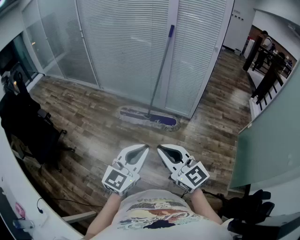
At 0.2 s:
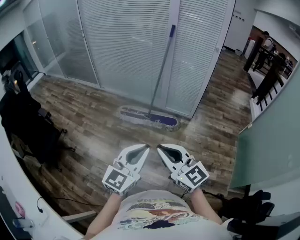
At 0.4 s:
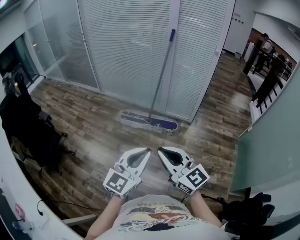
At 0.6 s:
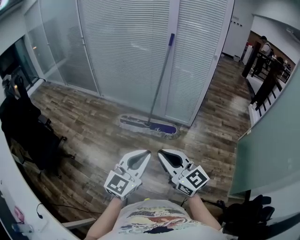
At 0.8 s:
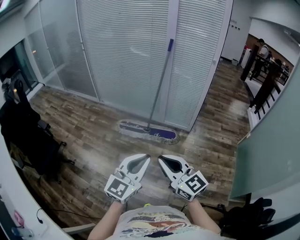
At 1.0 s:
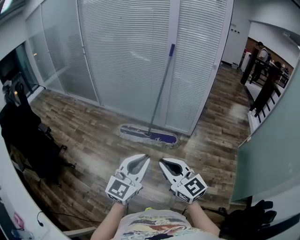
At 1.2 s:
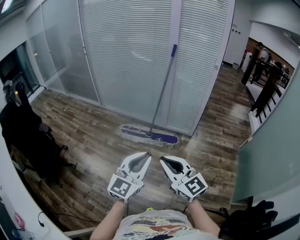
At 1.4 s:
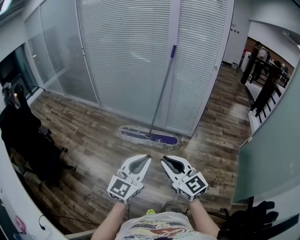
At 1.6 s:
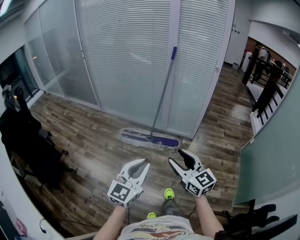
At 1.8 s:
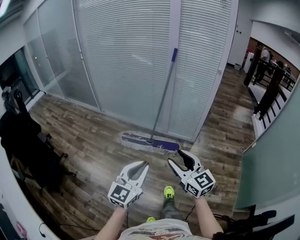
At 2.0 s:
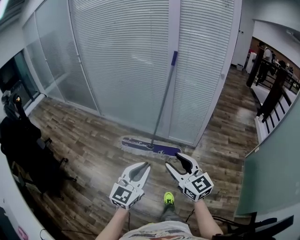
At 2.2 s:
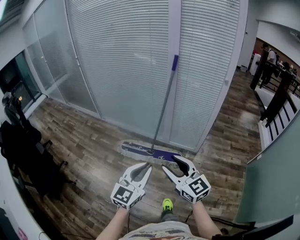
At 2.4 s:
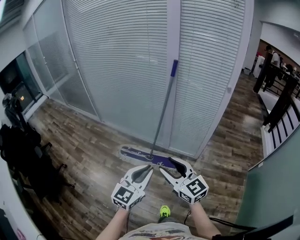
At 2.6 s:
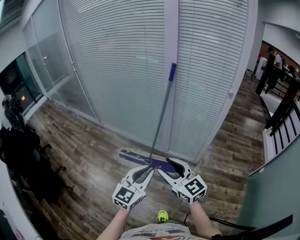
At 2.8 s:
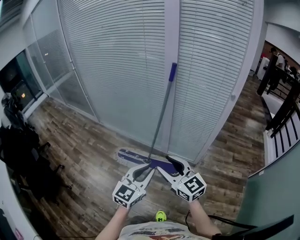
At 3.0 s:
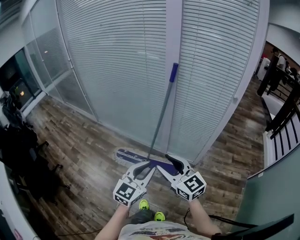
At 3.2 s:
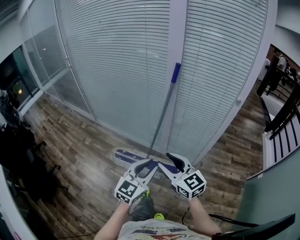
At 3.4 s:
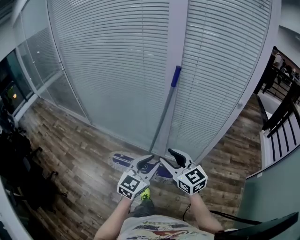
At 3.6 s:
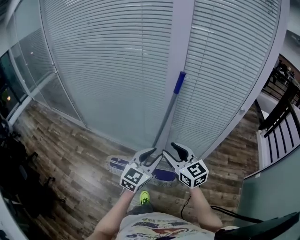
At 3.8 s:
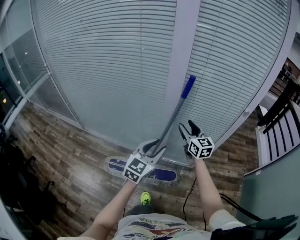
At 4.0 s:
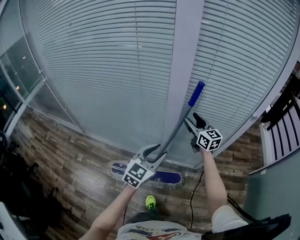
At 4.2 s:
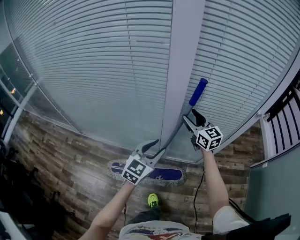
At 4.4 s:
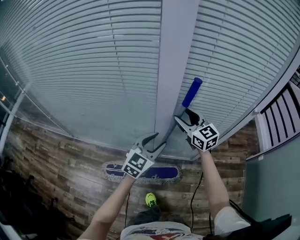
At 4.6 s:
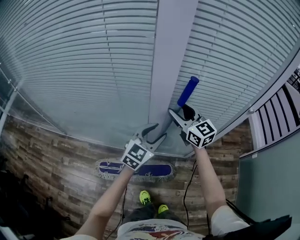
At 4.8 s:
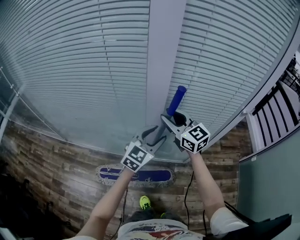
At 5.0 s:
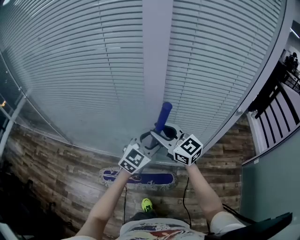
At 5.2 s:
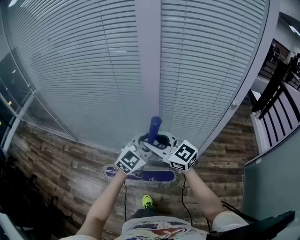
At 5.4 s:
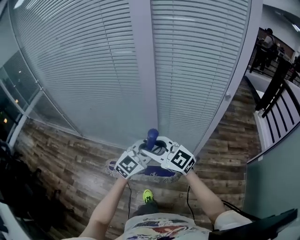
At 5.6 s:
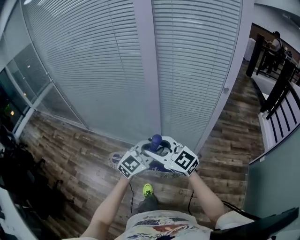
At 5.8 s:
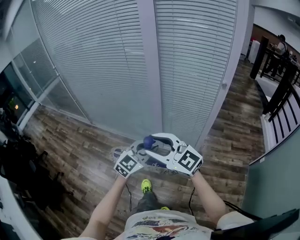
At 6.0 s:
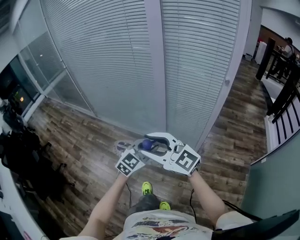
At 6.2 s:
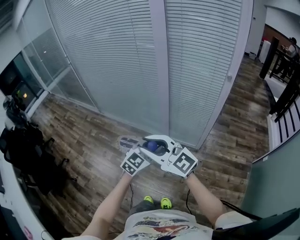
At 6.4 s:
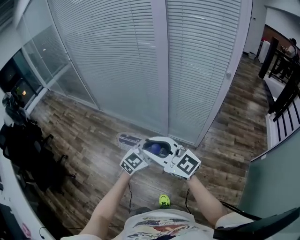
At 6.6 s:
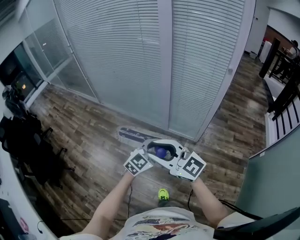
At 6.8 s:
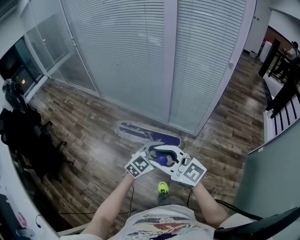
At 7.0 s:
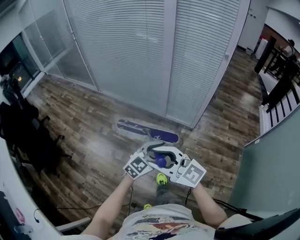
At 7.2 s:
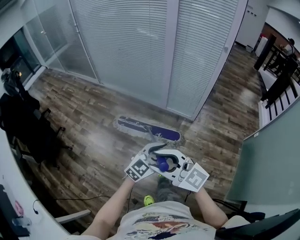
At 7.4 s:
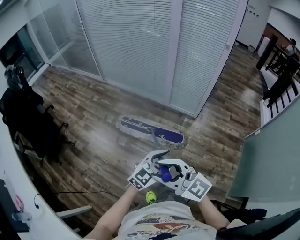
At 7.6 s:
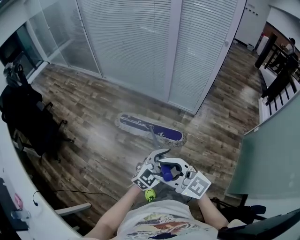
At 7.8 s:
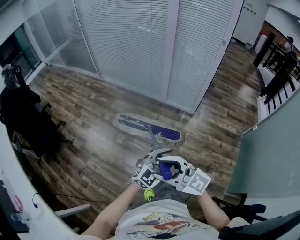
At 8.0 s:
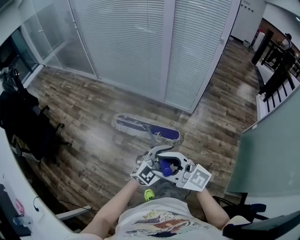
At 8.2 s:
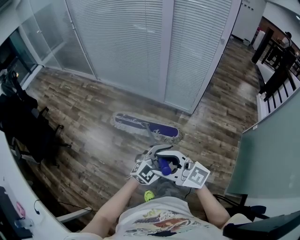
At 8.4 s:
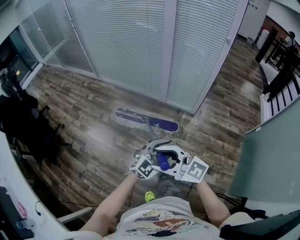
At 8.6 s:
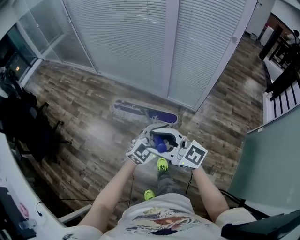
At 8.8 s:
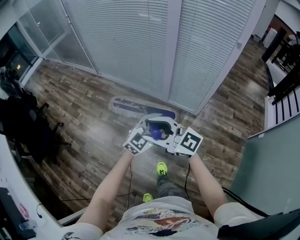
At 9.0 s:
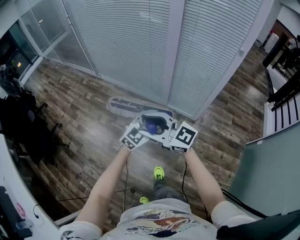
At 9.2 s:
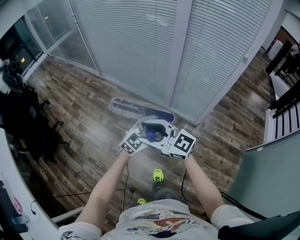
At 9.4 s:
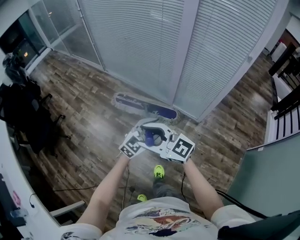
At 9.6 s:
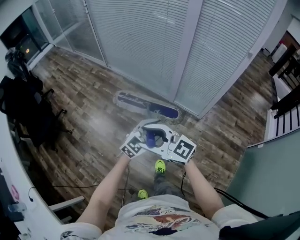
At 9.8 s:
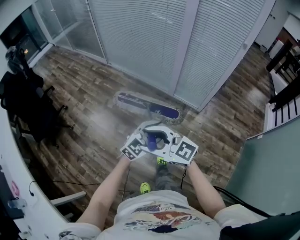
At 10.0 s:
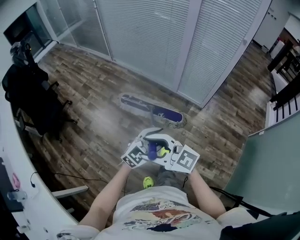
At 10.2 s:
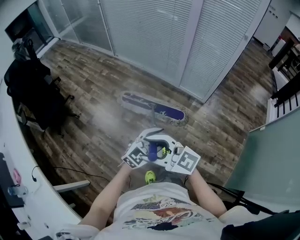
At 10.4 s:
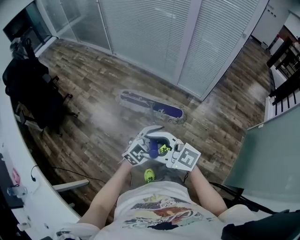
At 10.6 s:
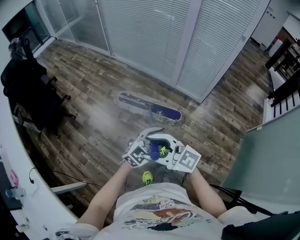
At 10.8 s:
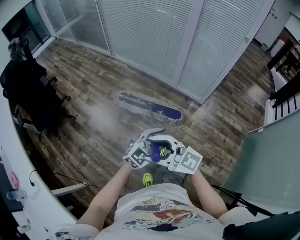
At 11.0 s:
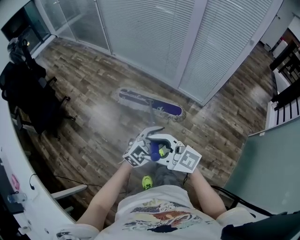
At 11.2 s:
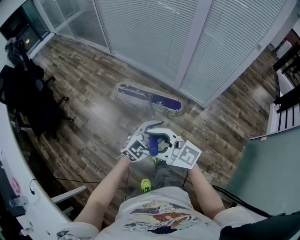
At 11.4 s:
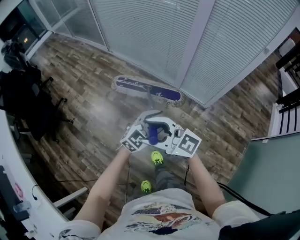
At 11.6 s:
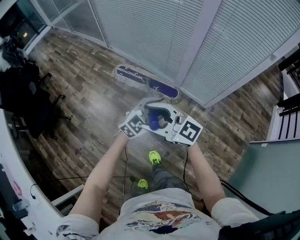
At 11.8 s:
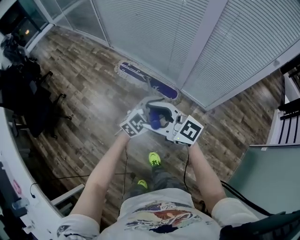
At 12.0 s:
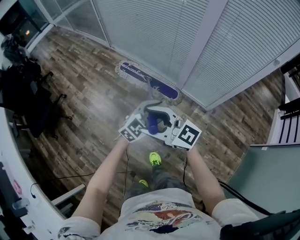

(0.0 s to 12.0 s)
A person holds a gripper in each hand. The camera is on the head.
0.0 s - 1.6 s: Both grippers move forward, roughly 10 cm. The right gripper opens up.
1.6 s - 3.0 s: The two grippers travel together, forward, roughly 50 cm.
3.0 s - 4.4 s: The pair of grippers is taken forward, some 50 cm. The right gripper changes its angle by about 20 degrees; the left gripper changes its angle by approximately 20 degrees, and opens its fingers.
4.4 s - 6.0 s: Both grippers are carried about 50 cm. The right gripper turns by about 50 degrees.
6.0 s - 7.6 s: Both grippers are carried backward, roughly 50 cm. The left gripper opens.
7.6 s - 9.0 s: The pair of grippers is taken some 40 cm.
9.0 s - 10.4 s: Both grippers are carried approximately 40 cm.
10.4 s - 12.0 s: Both grippers are carried about 50 cm.

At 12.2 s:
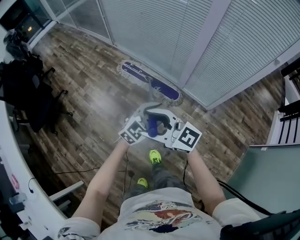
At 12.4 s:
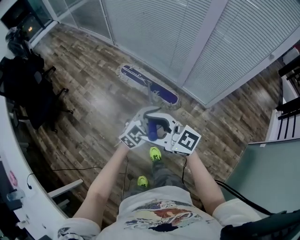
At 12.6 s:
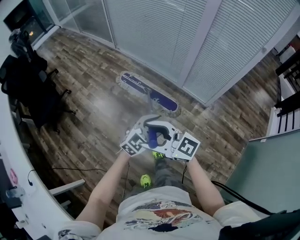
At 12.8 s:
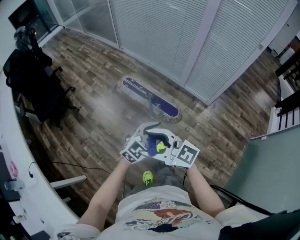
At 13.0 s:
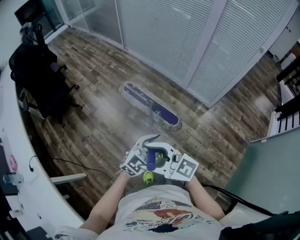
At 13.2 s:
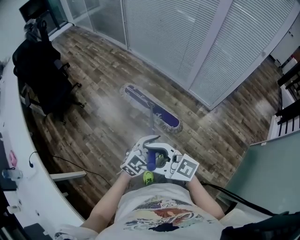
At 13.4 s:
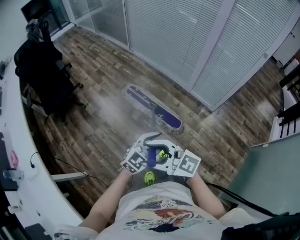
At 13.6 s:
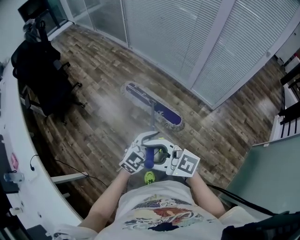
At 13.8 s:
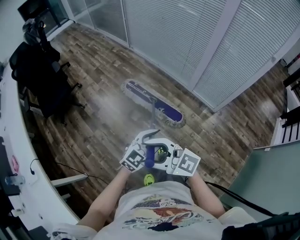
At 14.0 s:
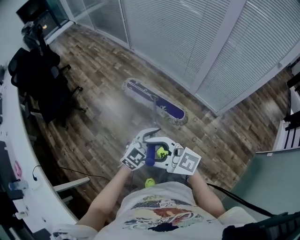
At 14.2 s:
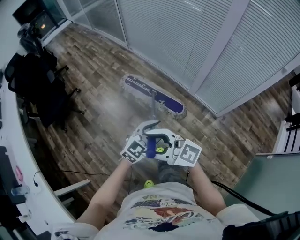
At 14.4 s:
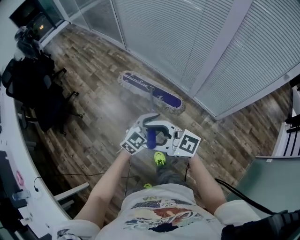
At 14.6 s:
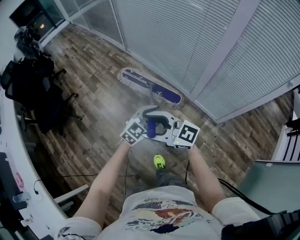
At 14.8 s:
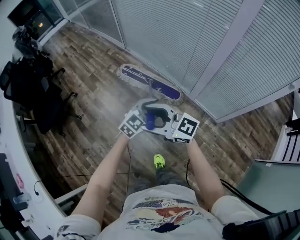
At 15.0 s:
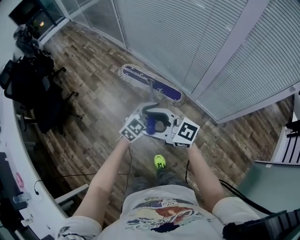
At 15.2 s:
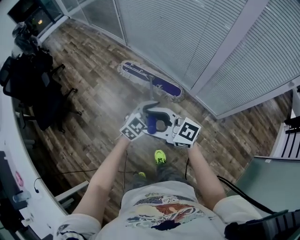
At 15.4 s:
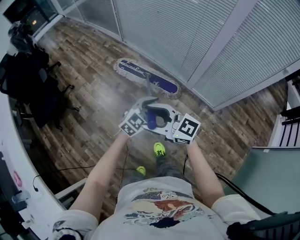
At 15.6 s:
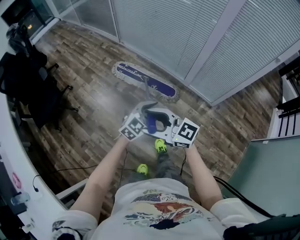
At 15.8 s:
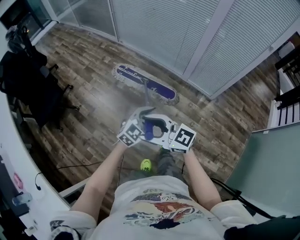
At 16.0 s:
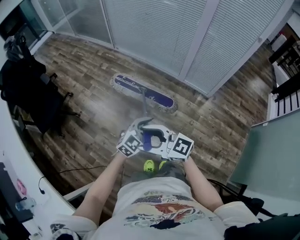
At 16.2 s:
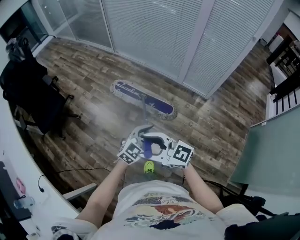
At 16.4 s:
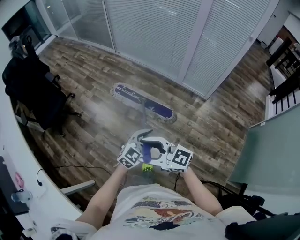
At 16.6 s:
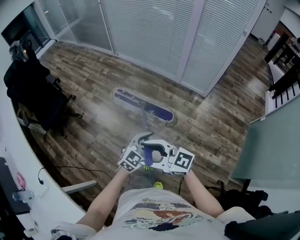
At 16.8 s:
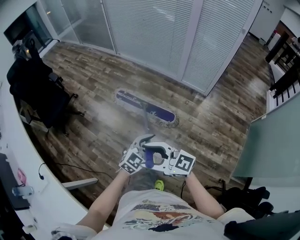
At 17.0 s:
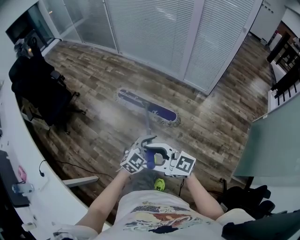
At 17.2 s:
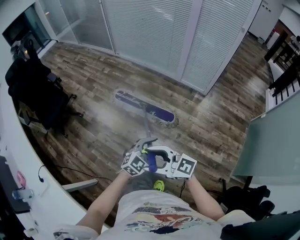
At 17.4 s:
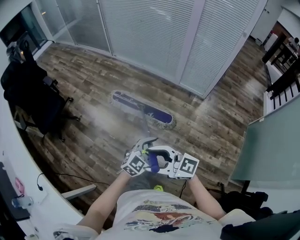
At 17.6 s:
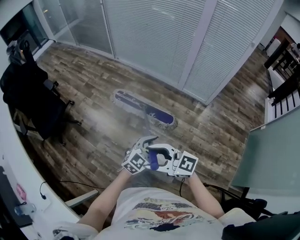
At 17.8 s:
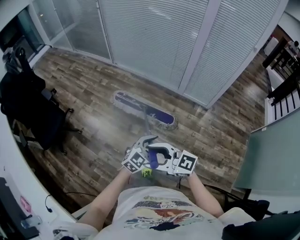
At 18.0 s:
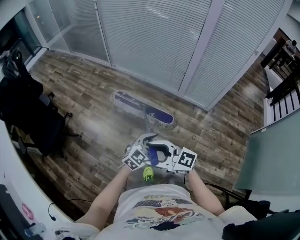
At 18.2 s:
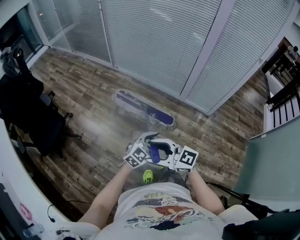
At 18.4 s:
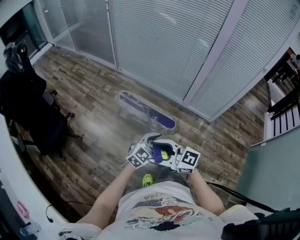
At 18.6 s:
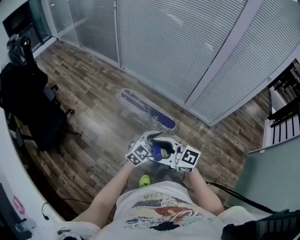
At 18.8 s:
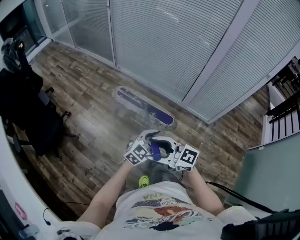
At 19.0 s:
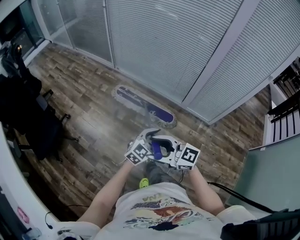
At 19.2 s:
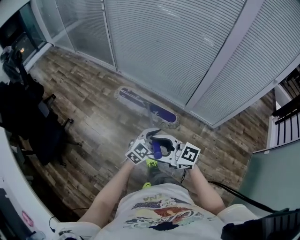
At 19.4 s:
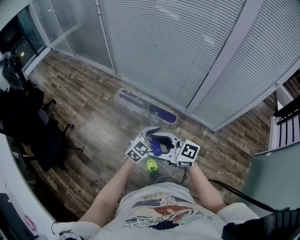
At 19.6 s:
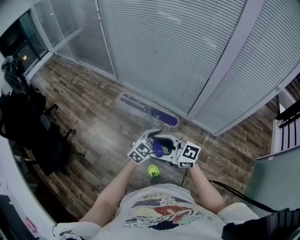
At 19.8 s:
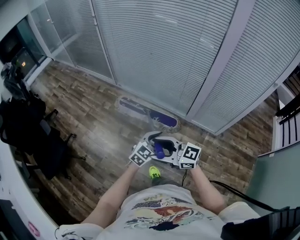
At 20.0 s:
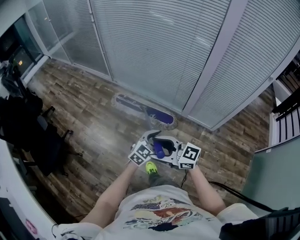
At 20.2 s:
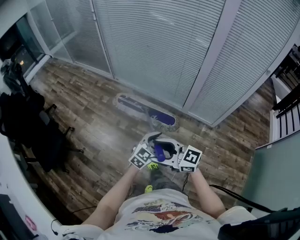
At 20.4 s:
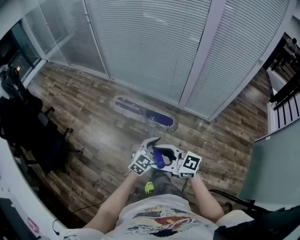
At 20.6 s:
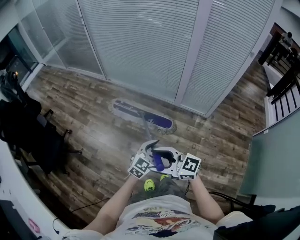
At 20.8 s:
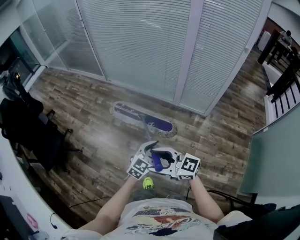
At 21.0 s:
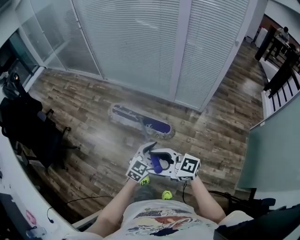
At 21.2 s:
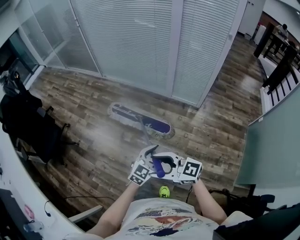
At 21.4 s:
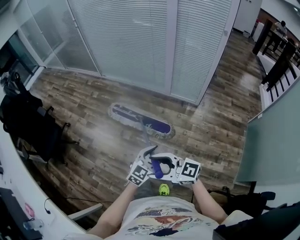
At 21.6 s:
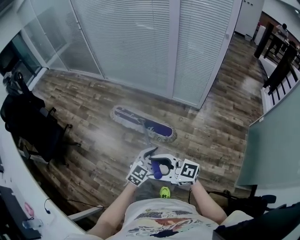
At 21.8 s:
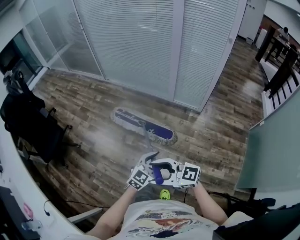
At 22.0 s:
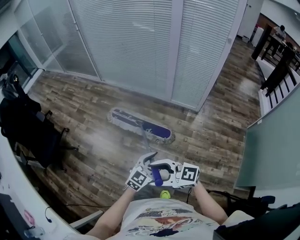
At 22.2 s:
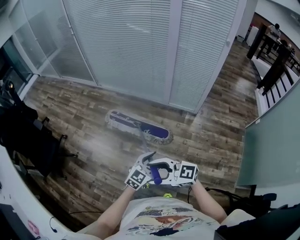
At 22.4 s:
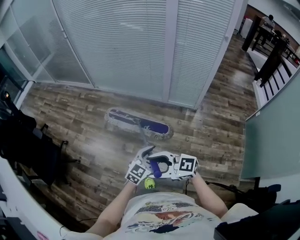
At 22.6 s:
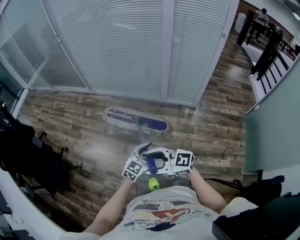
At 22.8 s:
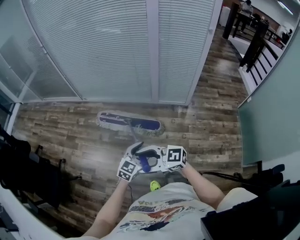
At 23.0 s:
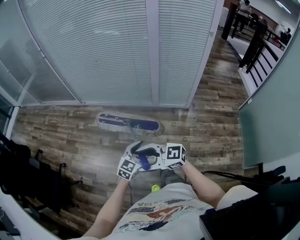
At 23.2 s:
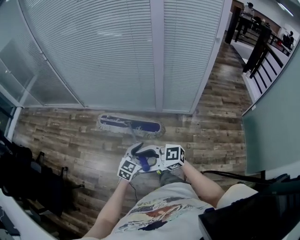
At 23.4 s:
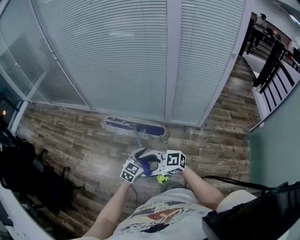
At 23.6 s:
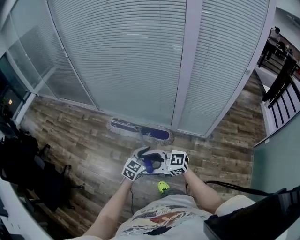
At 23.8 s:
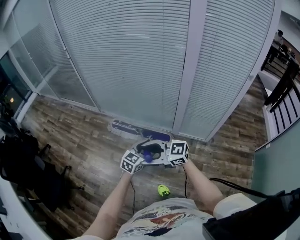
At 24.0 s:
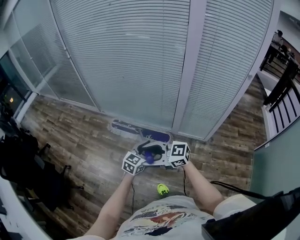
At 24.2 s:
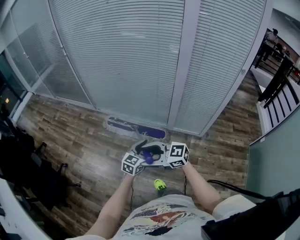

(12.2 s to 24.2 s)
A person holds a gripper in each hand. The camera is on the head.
12.2 s - 13.8 s: The left gripper changes place by some 30 cm. The right gripper shifts by about 35 cm.
13.8 s - 15.2 s: The left gripper changes place by some 40 cm. The right gripper ends up roughly 40 cm from where it was.
15.2 s - 16.6 s: The two grippers travel together, backward, approximately 60 cm.
16.6 s - 18.2 s: The left gripper moves roughly 30 cm; the right gripper moves about 35 cm.
18.2 s - 19.8 s: The right gripper shifts by approximately 30 cm. The left gripper shifts by approximately 30 cm.
19.8 s - 21.2 s: The pair of grippers is taken backward, roughly 50 cm.
21.2 s - 22.6 s: The right gripper ends up approximately 20 cm from where it was. The left gripper ends up about 20 cm from where it was.
22.6 s - 24.2 s: The right gripper moves about 30 cm. Meanwhile the left gripper changes place by about 30 cm.
